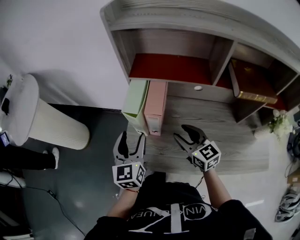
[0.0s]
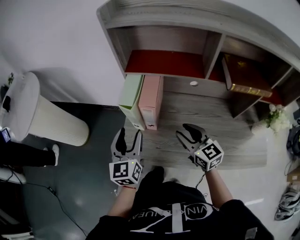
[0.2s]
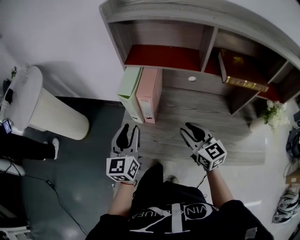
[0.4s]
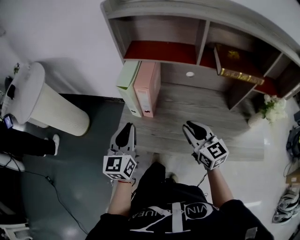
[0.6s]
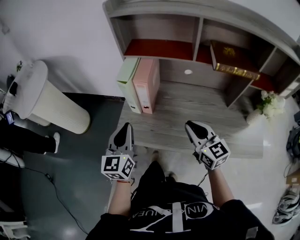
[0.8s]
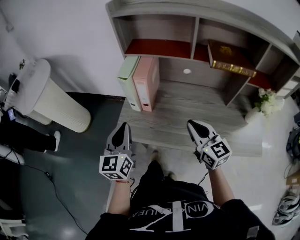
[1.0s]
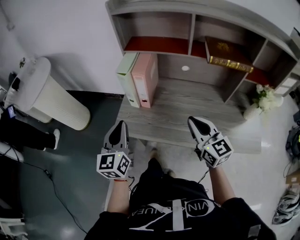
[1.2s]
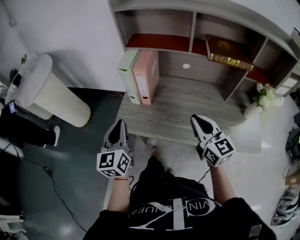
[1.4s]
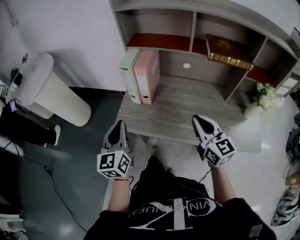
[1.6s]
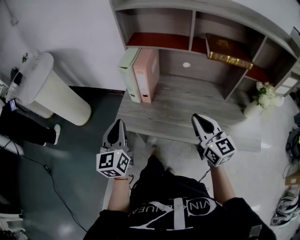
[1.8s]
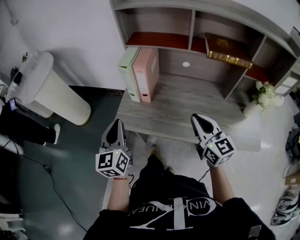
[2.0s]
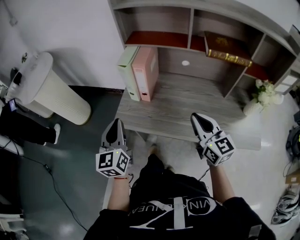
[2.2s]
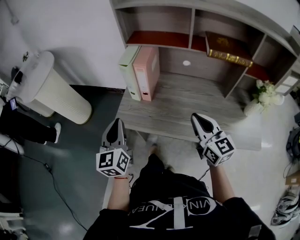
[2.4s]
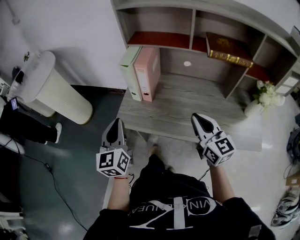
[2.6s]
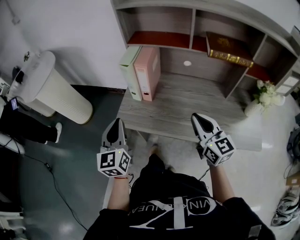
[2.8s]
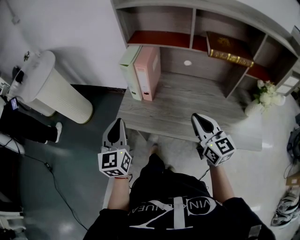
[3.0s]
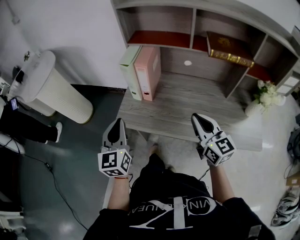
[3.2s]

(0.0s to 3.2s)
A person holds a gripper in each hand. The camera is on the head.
0.0s - 1.6s: The right gripper is displaced backward and upward by approximately 20 cm, and closes its fingers, while the left gripper is displaced backward by approximately 20 cm, and closes up.
1.6s - 3.2s: The grippers make only small movements.

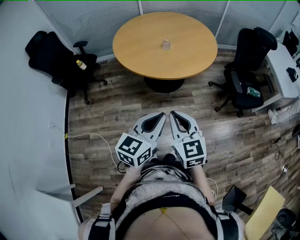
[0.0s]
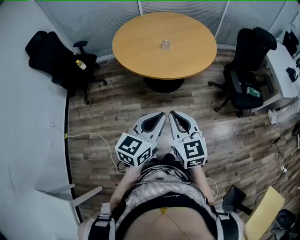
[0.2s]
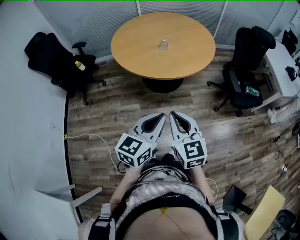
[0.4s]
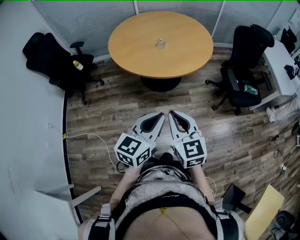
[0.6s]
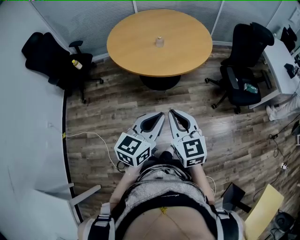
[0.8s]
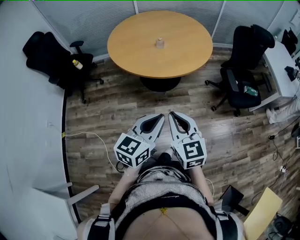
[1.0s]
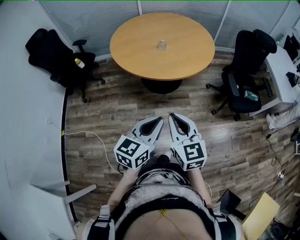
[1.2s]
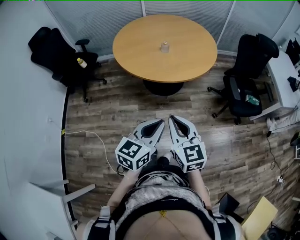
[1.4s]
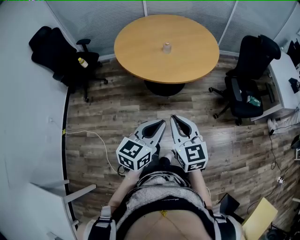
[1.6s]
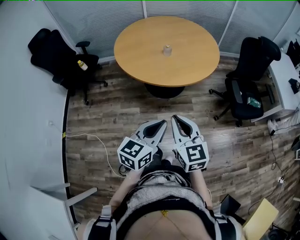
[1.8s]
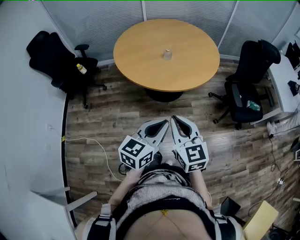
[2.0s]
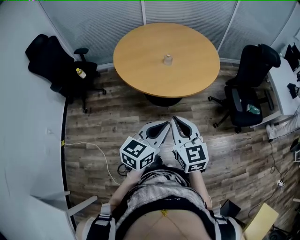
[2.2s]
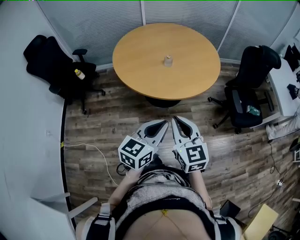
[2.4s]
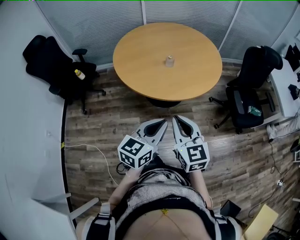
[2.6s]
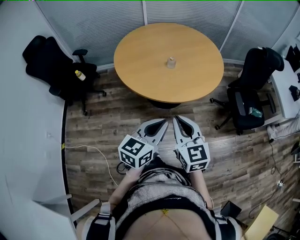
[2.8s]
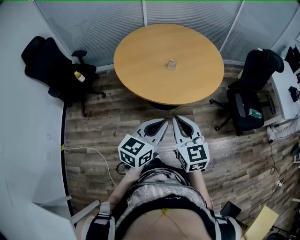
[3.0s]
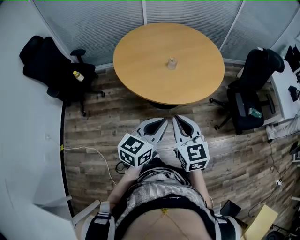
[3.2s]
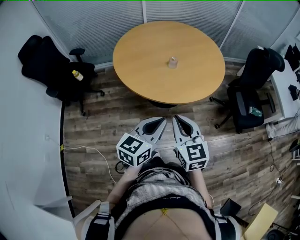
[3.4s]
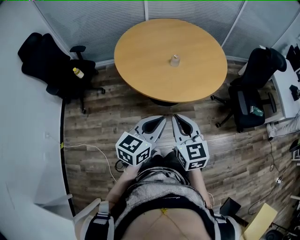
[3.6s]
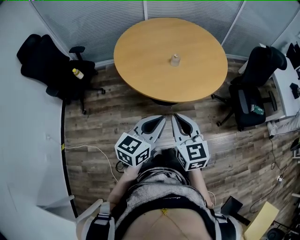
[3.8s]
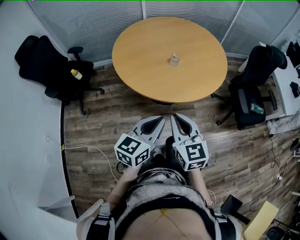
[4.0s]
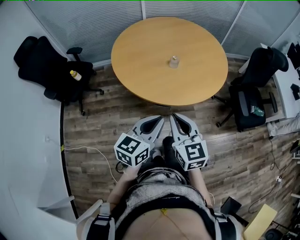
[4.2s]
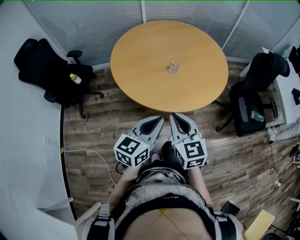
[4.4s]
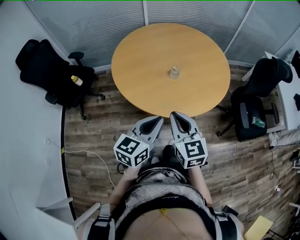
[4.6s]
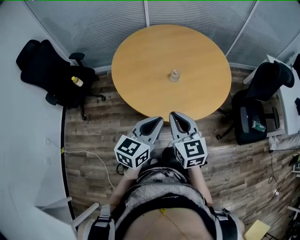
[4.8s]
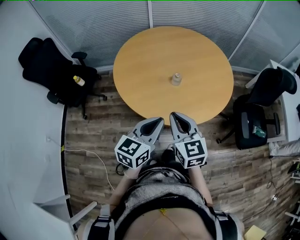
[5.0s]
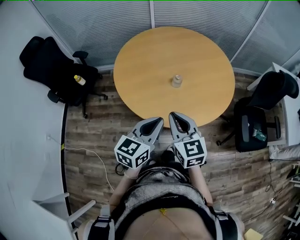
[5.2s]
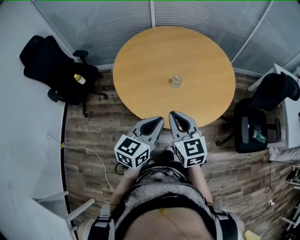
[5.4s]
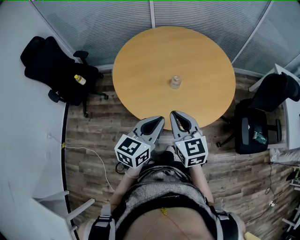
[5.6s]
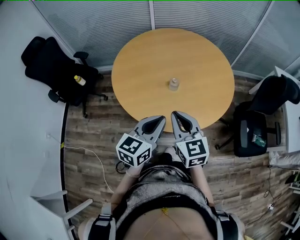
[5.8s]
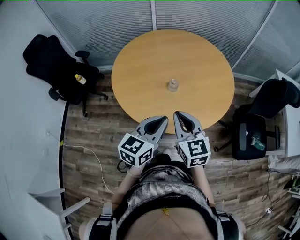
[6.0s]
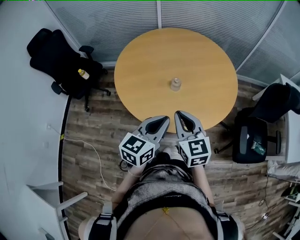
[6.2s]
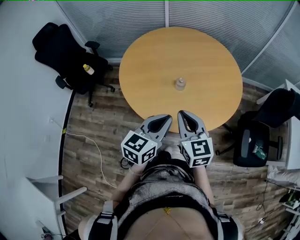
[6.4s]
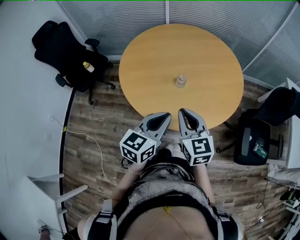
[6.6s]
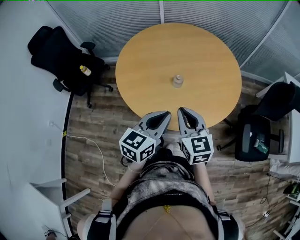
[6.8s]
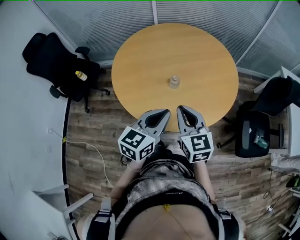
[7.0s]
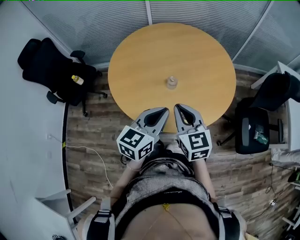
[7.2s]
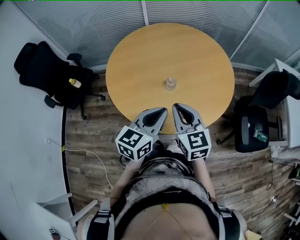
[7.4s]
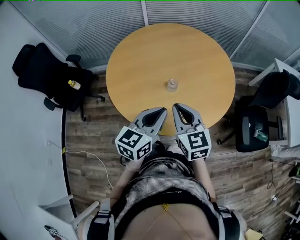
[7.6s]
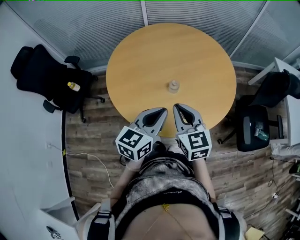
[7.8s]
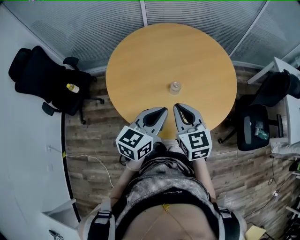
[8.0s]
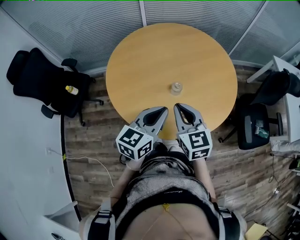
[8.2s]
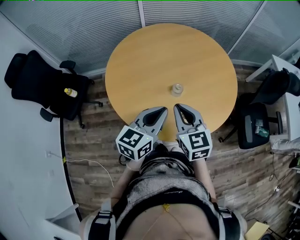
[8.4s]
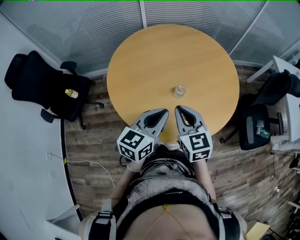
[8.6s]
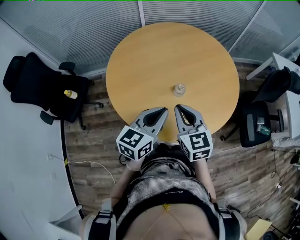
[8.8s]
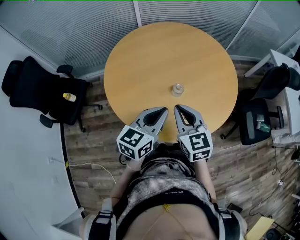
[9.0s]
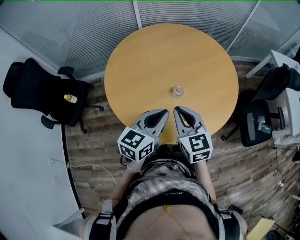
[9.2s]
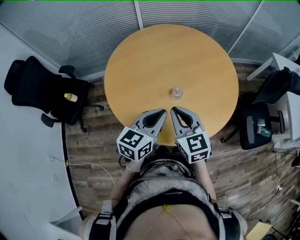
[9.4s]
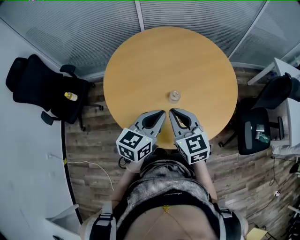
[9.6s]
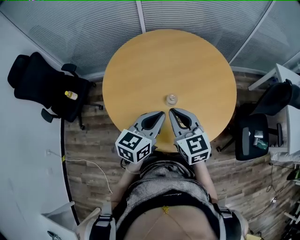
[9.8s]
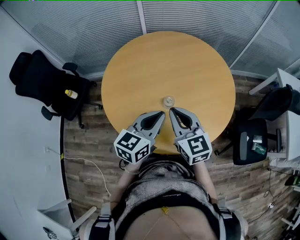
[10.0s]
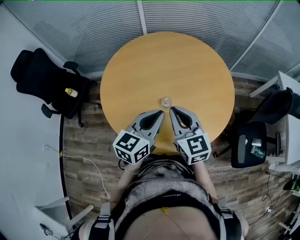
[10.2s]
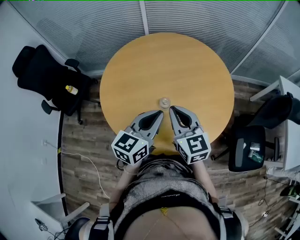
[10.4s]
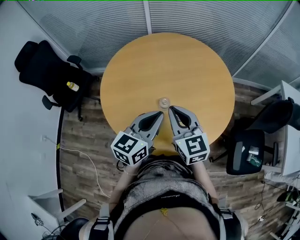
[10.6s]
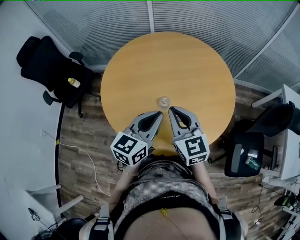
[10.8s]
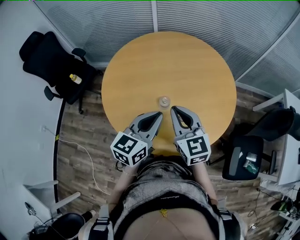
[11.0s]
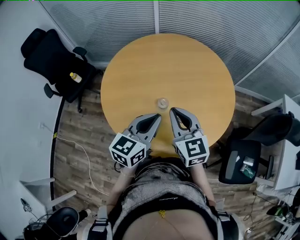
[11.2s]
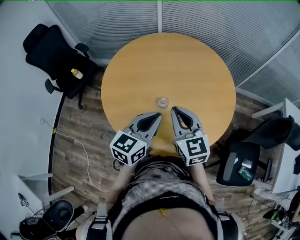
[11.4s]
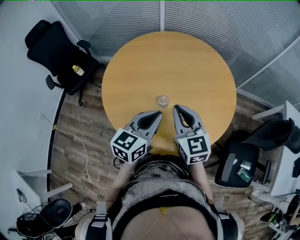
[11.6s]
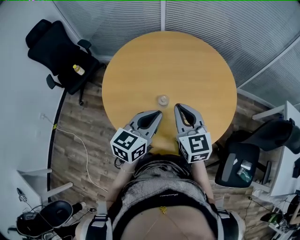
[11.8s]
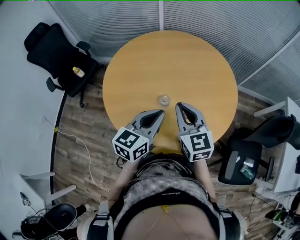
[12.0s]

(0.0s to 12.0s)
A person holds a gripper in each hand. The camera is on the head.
0.0s - 1.6s: The grippers stay close to where they were, moving slightly.
1.6s - 3.0s: Both grippers travel together forward and to the left, roughly 15 cm.
3.0s - 4.4s: The grippers both shift forward by some 10 cm.
4.4s - 6.0s: Both grippers move forward and to the right, some 15 cm.
6.0s - 7.6s: Both grippers move forward, about 5 cm.
7.6s - 9.0s: The right gripper moves to the left, roughly 5 cm, while the left gripper moves to the left and forward, roughly 10 cm.
9.0s - 10.4s: Both grippers move to the right and forward, about 10 cm.
10.4s - 12.0s: The grippers stay close to where they were, moving slightly.

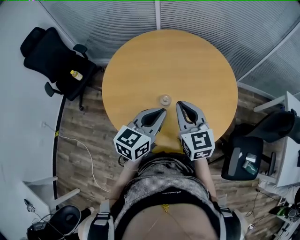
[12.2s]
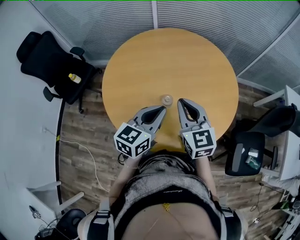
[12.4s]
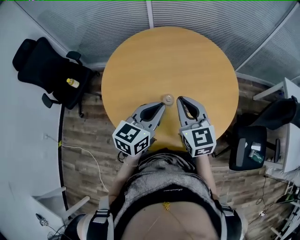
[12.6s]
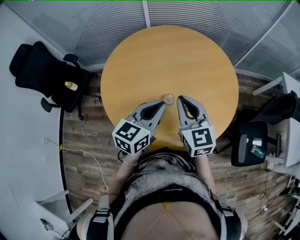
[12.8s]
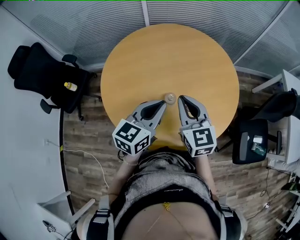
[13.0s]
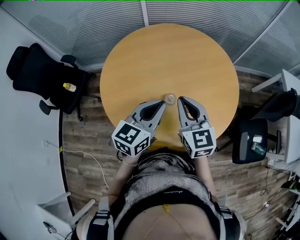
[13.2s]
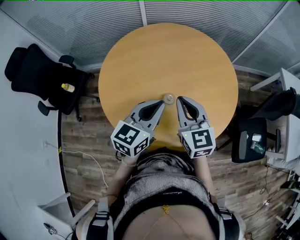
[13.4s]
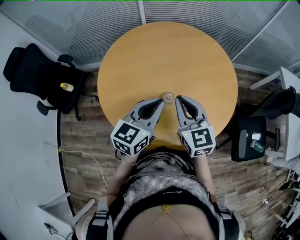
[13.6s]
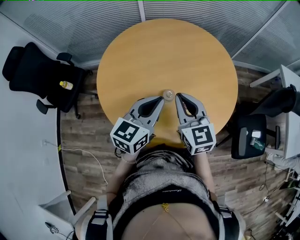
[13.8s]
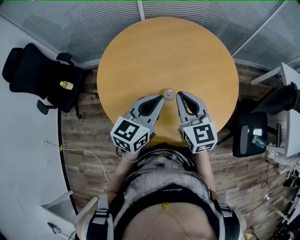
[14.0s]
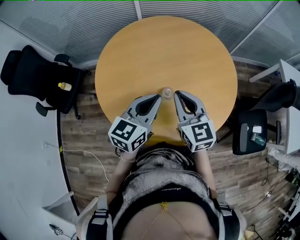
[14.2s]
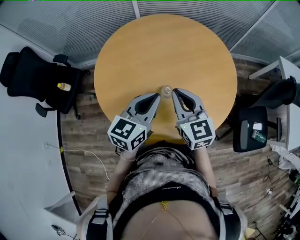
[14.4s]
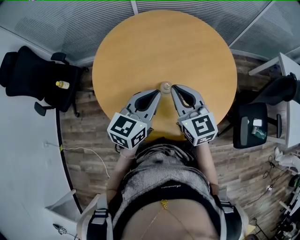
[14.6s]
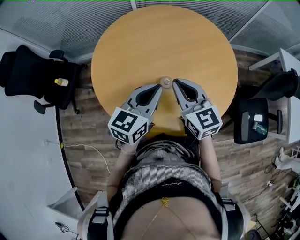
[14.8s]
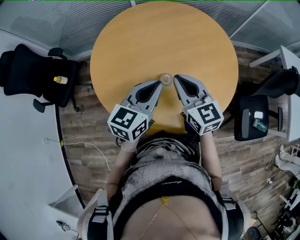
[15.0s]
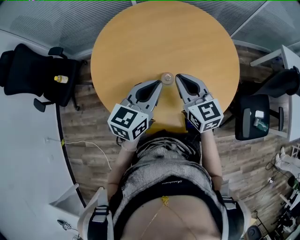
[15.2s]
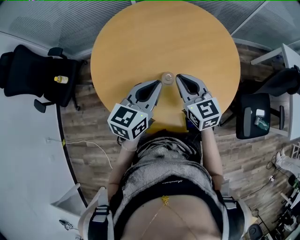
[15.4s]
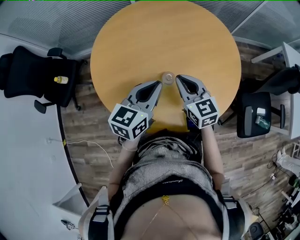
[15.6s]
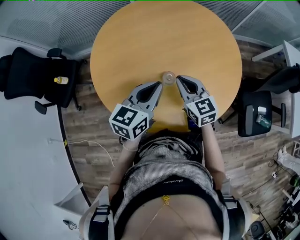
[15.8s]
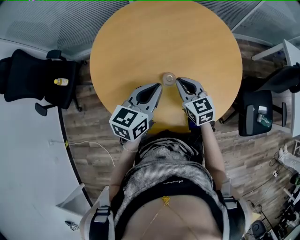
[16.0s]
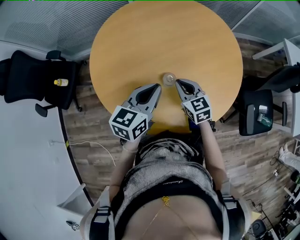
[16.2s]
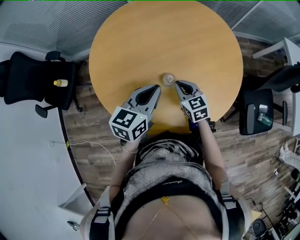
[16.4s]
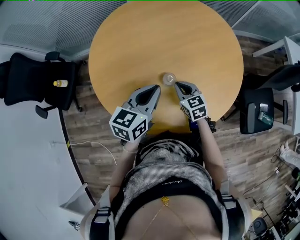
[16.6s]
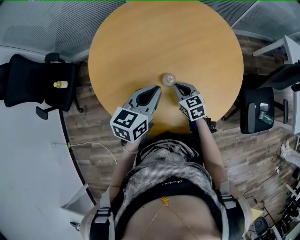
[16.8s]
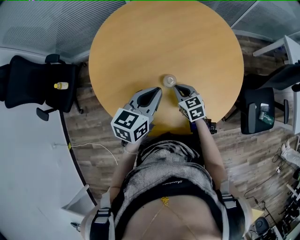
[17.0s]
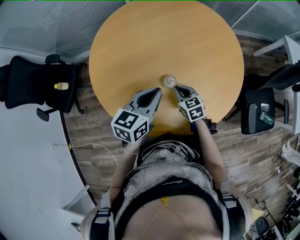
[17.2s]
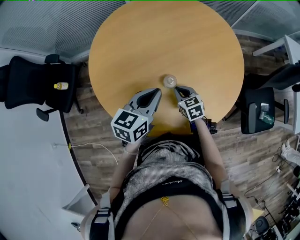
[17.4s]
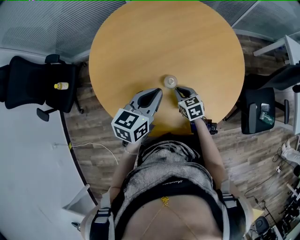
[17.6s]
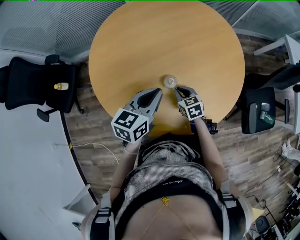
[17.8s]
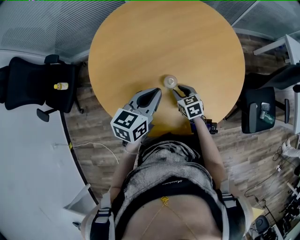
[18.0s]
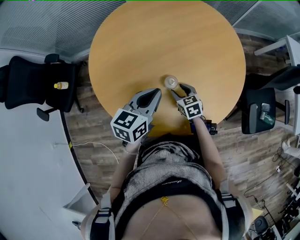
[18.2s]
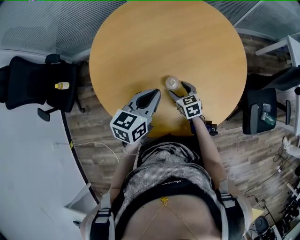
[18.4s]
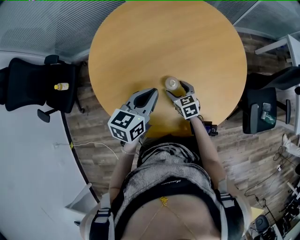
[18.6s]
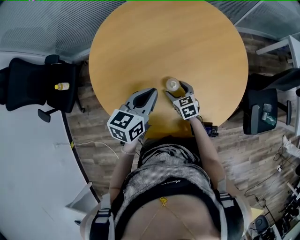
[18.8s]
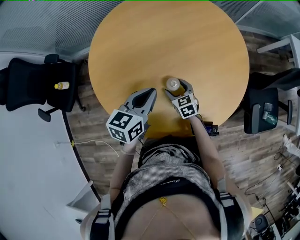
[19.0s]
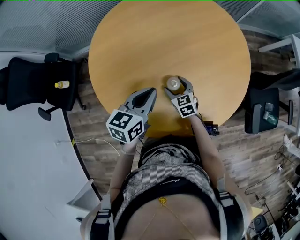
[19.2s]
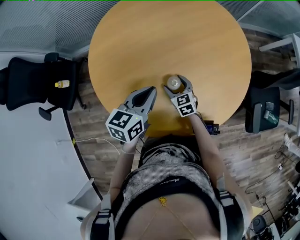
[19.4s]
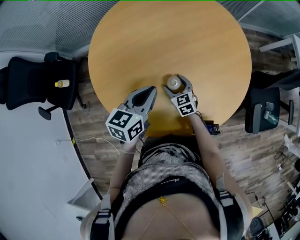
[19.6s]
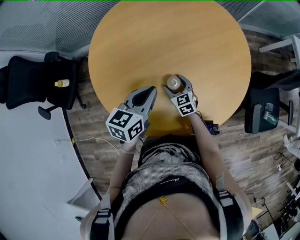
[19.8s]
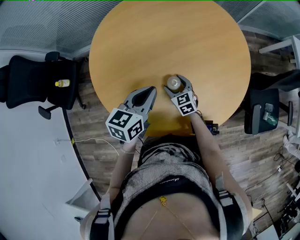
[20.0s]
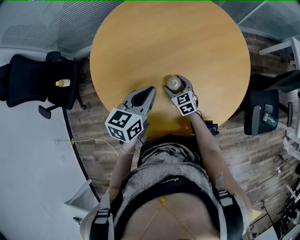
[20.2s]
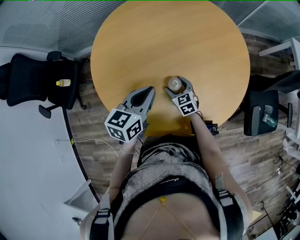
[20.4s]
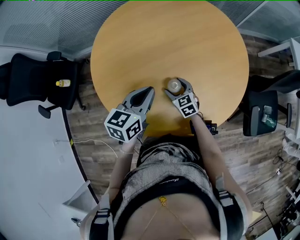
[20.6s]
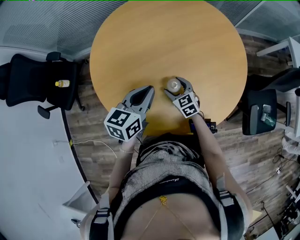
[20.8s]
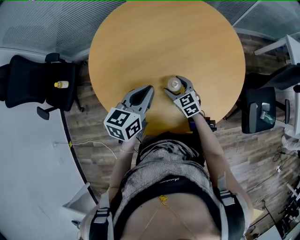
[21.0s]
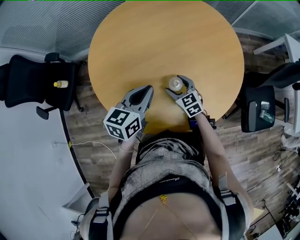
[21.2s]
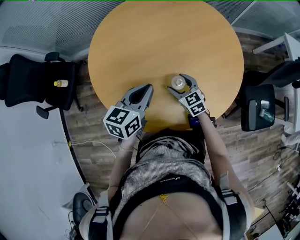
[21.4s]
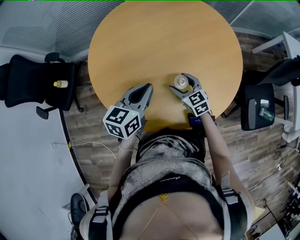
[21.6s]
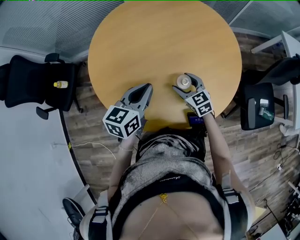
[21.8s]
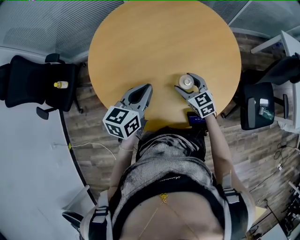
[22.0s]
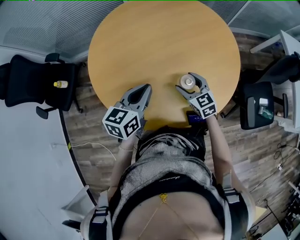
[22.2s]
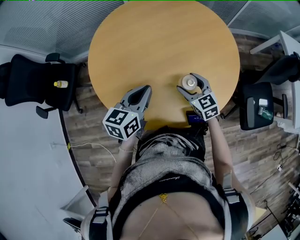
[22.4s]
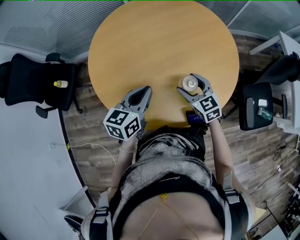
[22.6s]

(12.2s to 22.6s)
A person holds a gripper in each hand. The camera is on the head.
12.2s - 13.6s: The left gripper is displaced to the left by roughly 5 cm.
13.6s - 15.2s: There are only small adjustments of the grippers.
15.2s - 16.6s: The right gripper is displaced downward by approximately 20 cm, and turns by some 20 degrees. Meanwhile the left gripper heads downward, covering some 5 cm.
16.6s - 18.2s: The right gripper shifts roughly 5 cm downward, and opens its fingers.
18.2s - 19.6s: The right gripper changes place by about 5 cm, and opens up.
19.6s - 21.2s: The right gripper goes some 5 cm upward.
21.2s - 22.6s: The right gripper heads upward and to the right, covering roughly 10 cm.
